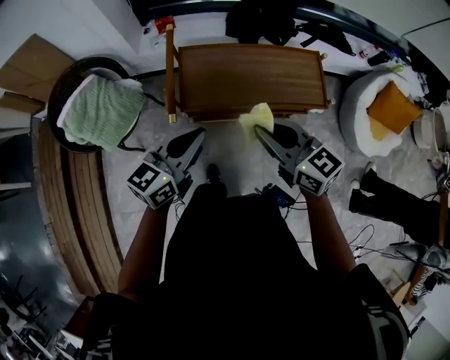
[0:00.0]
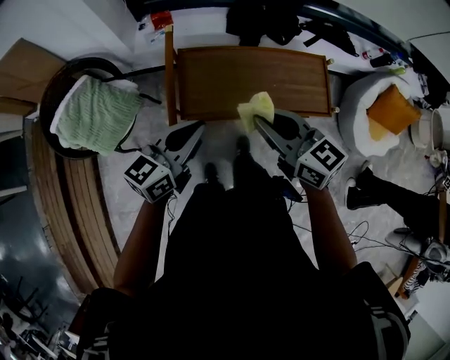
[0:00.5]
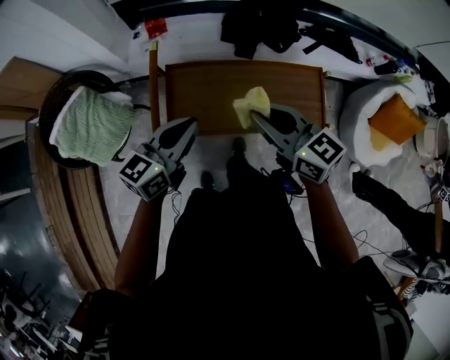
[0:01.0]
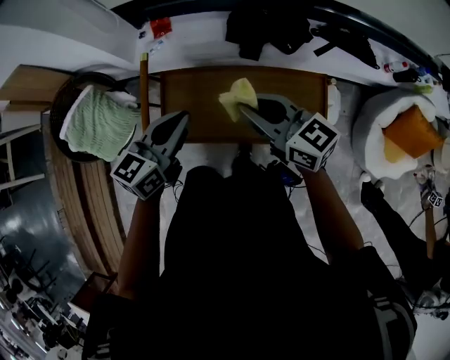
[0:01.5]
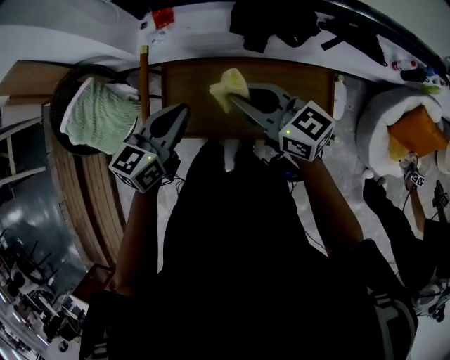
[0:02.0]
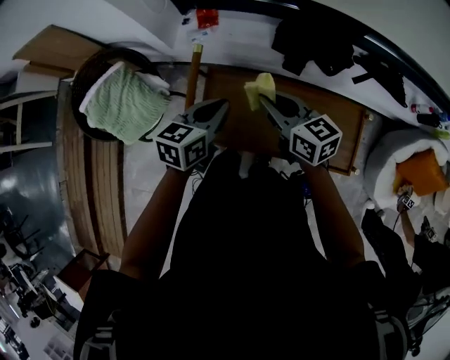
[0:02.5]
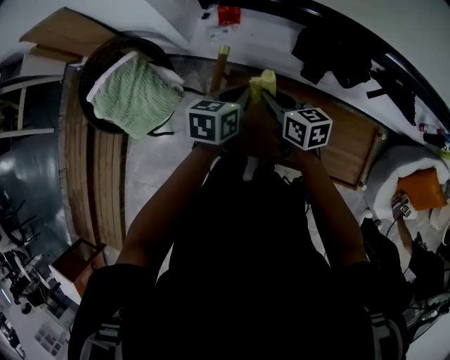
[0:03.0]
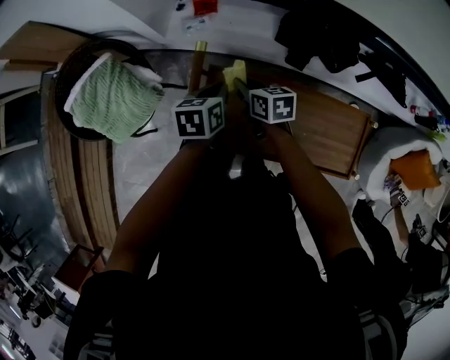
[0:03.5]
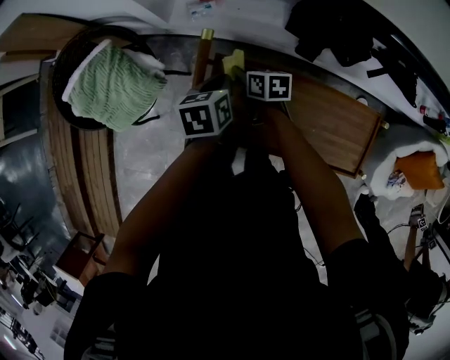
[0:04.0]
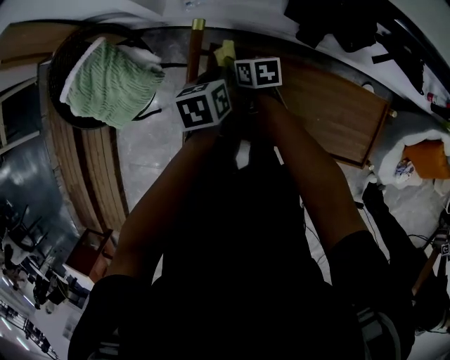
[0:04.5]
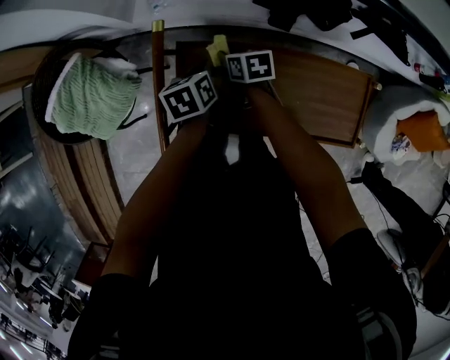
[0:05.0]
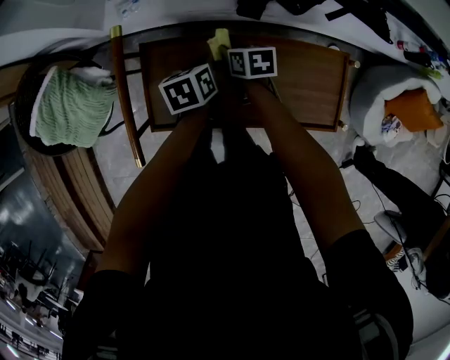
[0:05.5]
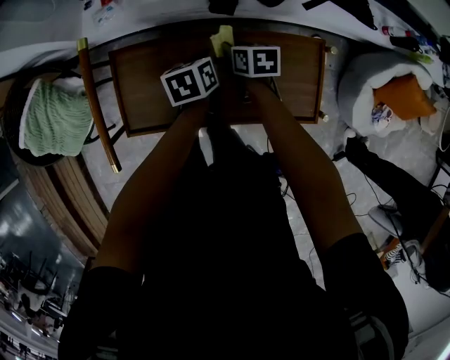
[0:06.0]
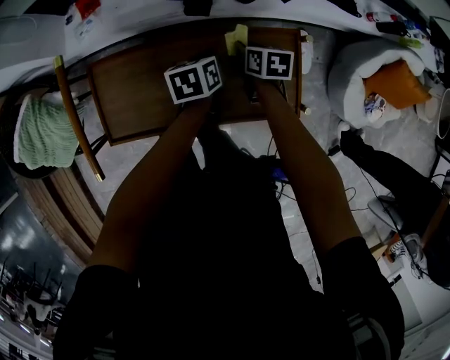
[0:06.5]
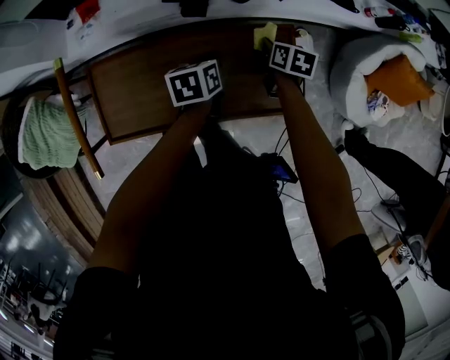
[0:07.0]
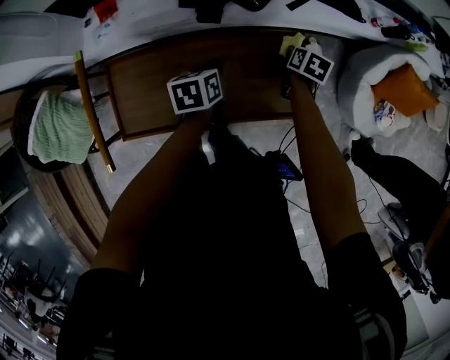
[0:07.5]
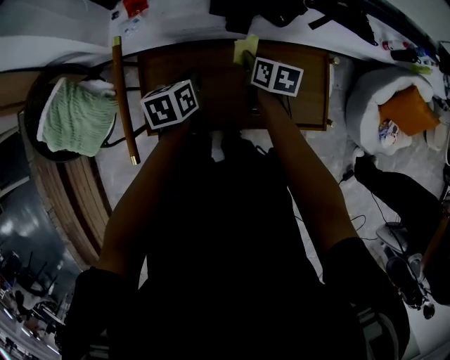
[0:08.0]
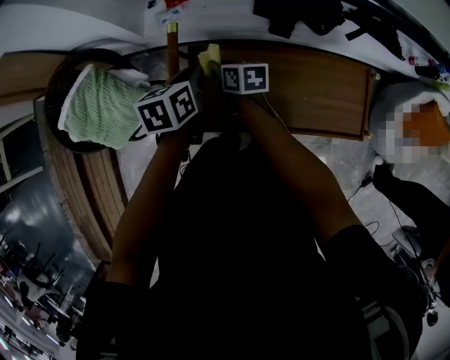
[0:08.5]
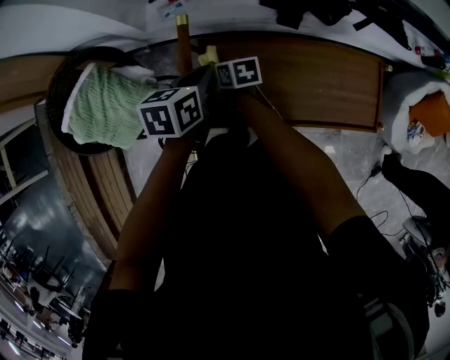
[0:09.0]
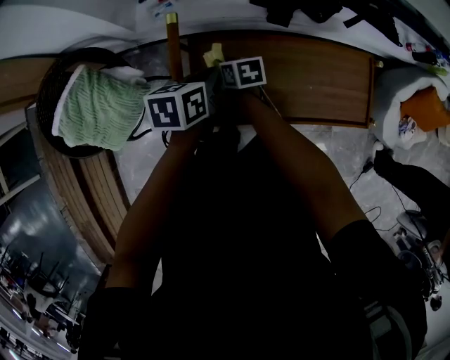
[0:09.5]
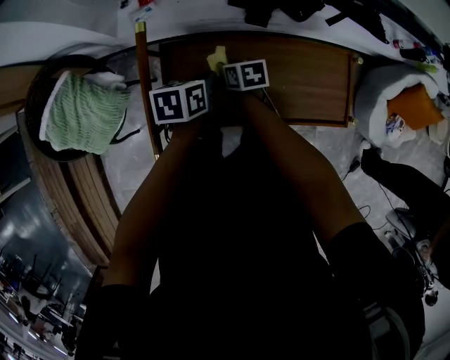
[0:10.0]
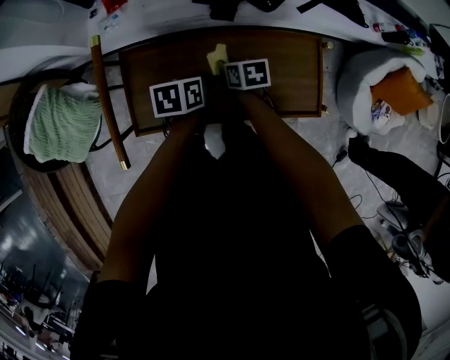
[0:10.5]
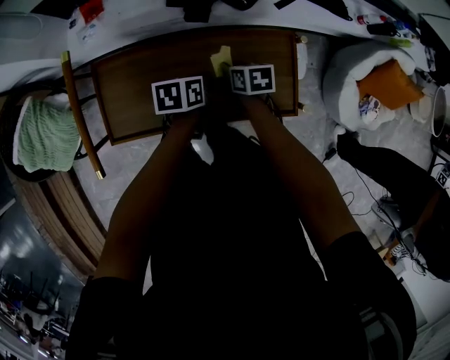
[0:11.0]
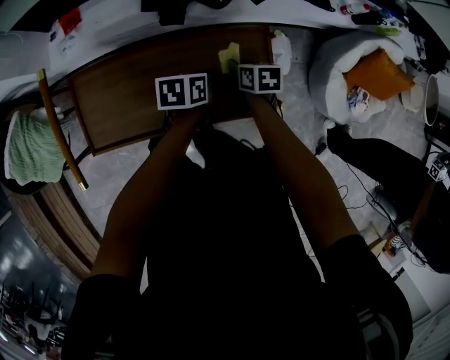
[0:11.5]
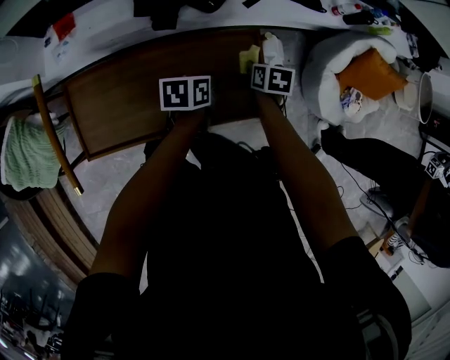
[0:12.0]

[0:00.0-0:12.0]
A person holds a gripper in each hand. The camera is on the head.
0:00.0 to 0:02.0: The two grippers go approximately 20 cm forward.
0:02.0 to 0:04.0: The right gripper travels downward, forward and to the left by about 35 cm, and tilts its fingers about 30 degrees downward; the left gripper moves downward, forward and to the left, some 25 cm, and changes its angle by approximately 40 degrees.
0:04.0 to 0:06.0: The two grippers go about 25 cm to the right.
0:06.0 to 0:08.0: The right gripper moves upward, approximately 10 cm, while the left gripper shifts by roughly 10 cm.
0:08.0 to 0:10.0: The right gripper travels to the left and downward by roughly 20 cm, and swivels approximately 20 degrees. The left gripper reaches about 15 cm to the left, then returns.
0:10.0 to 0:12.0: The left gripper moves roughly 30 cm, while the right gripper ends up approximately 40 cm from where it was, and rotates about 30 degrees.

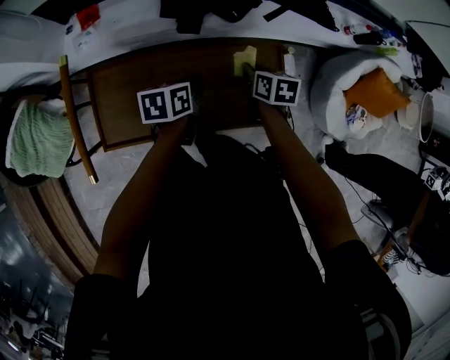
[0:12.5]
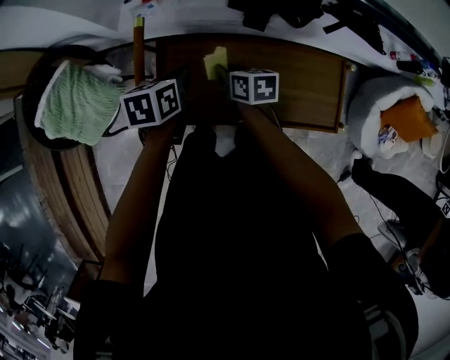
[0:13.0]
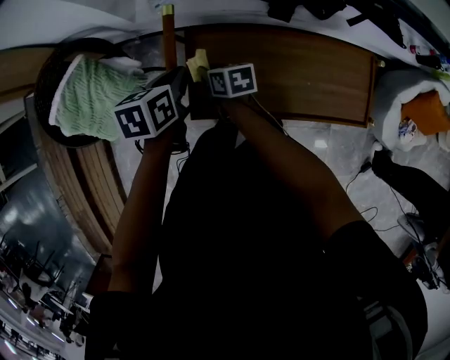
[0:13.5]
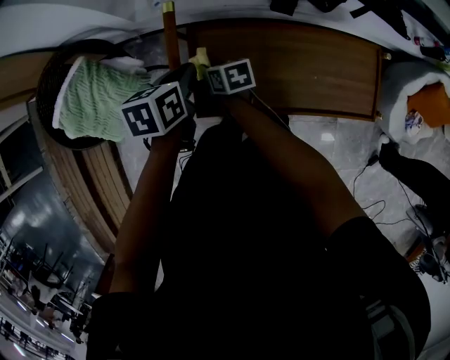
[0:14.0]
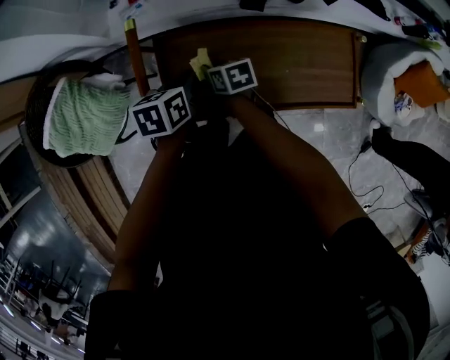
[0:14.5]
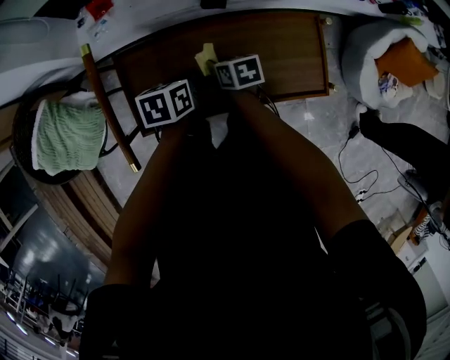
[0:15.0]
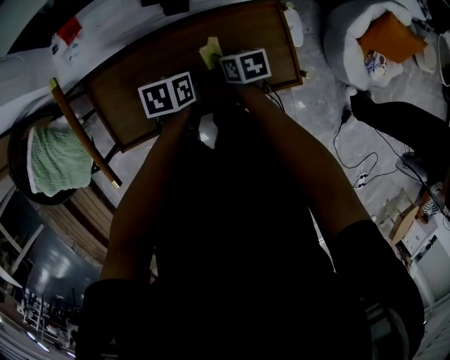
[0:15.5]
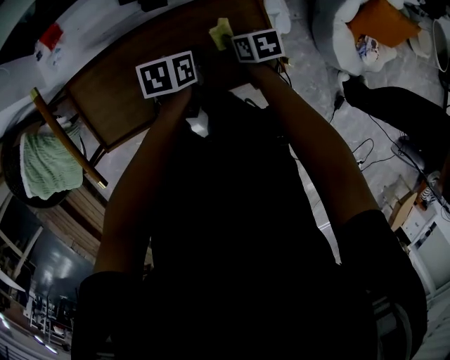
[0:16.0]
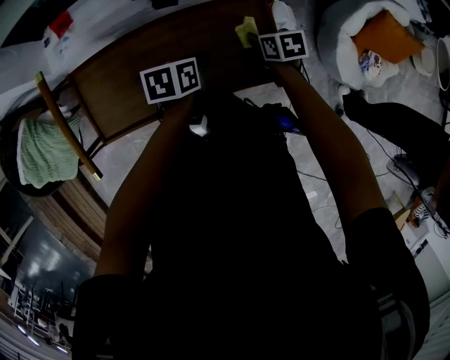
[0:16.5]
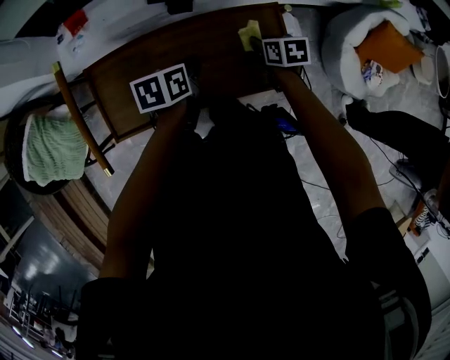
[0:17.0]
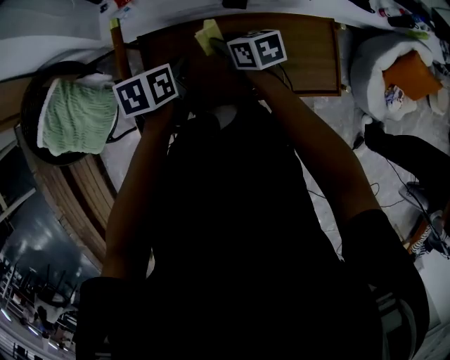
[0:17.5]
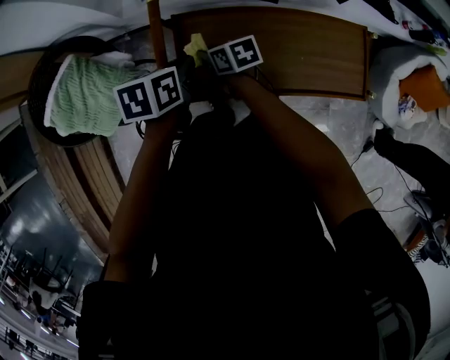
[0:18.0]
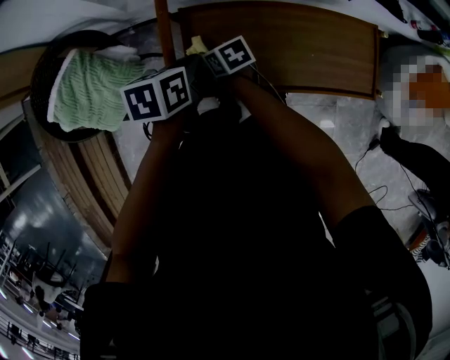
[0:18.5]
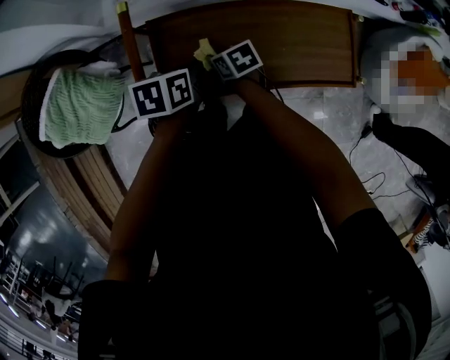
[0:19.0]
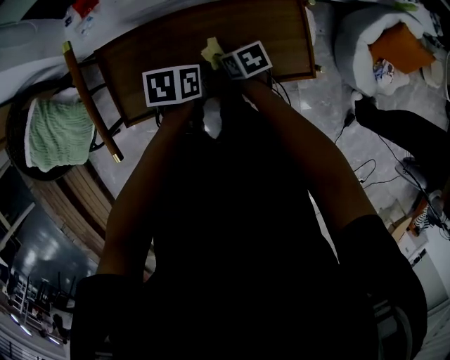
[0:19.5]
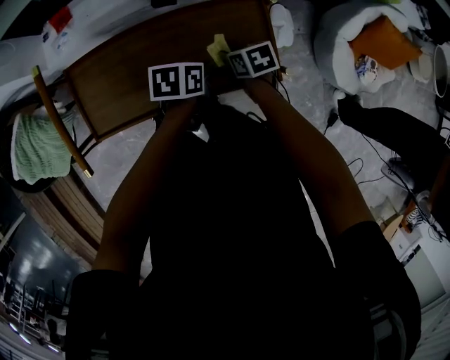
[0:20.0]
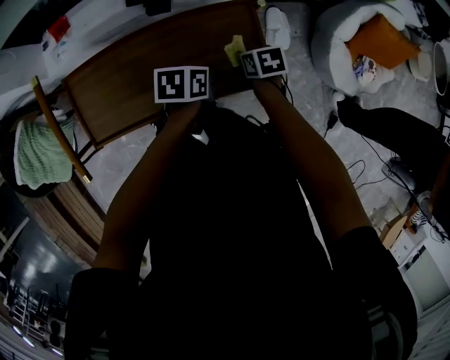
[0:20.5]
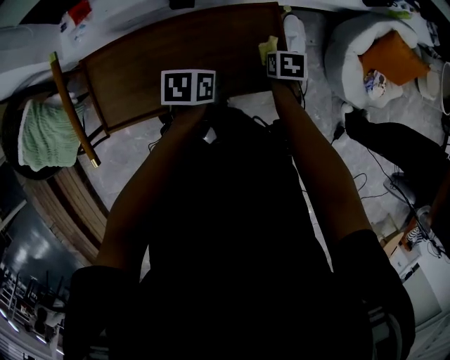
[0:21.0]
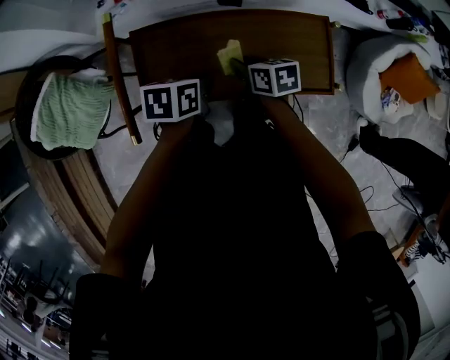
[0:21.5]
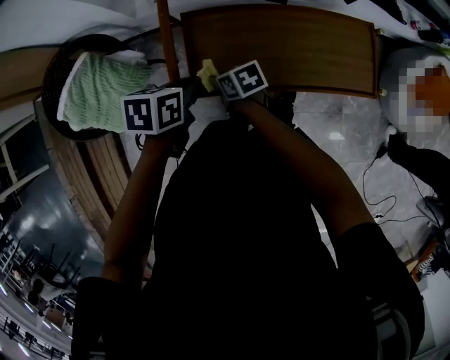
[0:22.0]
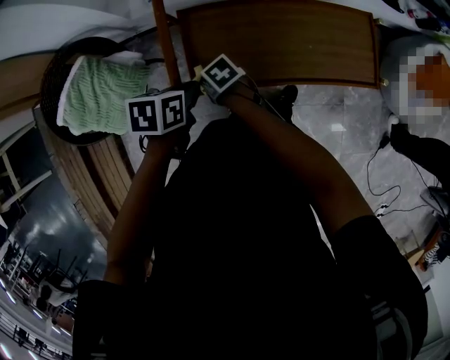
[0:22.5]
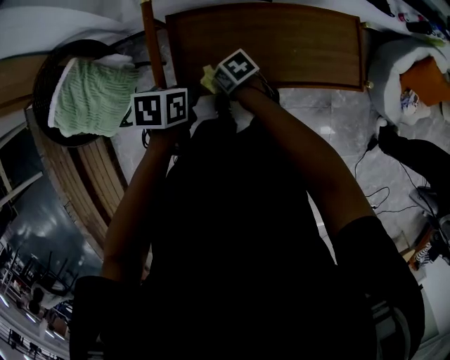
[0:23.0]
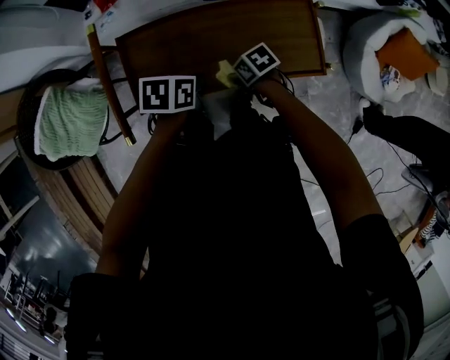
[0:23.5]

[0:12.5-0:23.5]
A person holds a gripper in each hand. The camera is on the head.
0:12.5 to 0:14.5: The right gripper ends up roughly 35 cm from where it was, and changes its angle by some 20 degrees; the left gripper ends up about 25 cm from where it was.
0:14.5 to 0:16.0: Both grippers travel together to the right, about 35 cm.
0:16.0 to 0:18.0: The left gripper ends up some 35 cm from where it was, while the right gripper goes upward and returns, roughly 10 cm each way, and turns by approximately 30 degrees.
0:18.0 to 0:20.0: Both grippers travel together to the right, about 40 cm. The left gripper swivels approximately 20 degrees.
0:20.0 to 0:21.5: The left gripper shifts by about 20 cm. The right gripper changes place by approximately 20 cm.
0:21.5 to 0:23.5: The right gripper travels downward by approximately 10 cm, and swivels about 30 degrees.

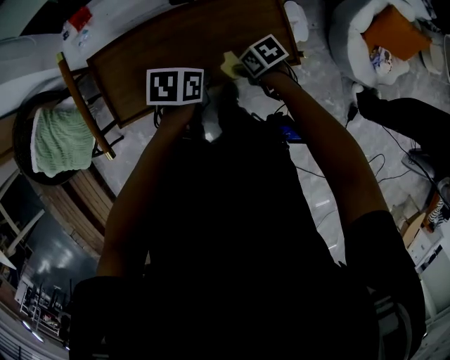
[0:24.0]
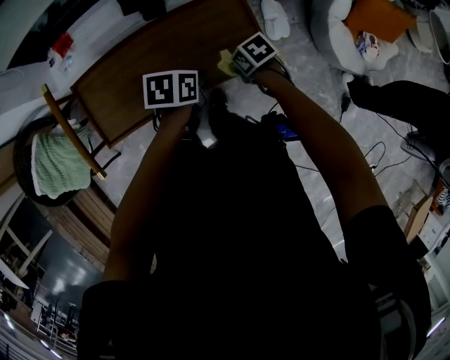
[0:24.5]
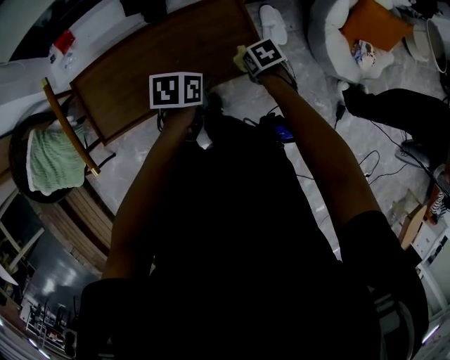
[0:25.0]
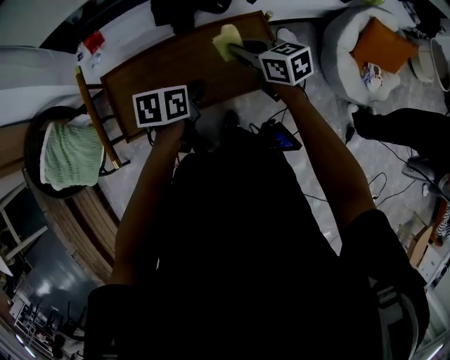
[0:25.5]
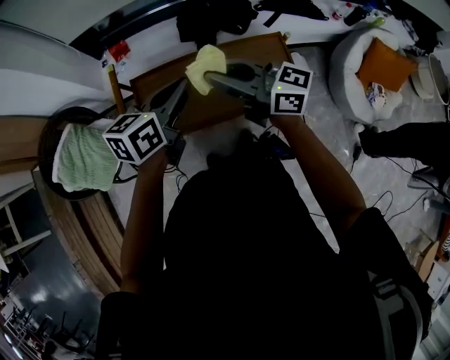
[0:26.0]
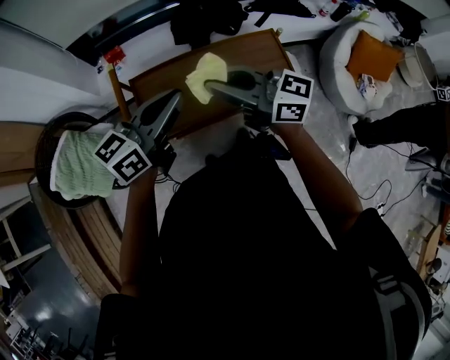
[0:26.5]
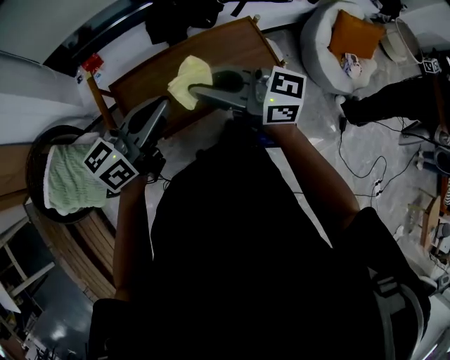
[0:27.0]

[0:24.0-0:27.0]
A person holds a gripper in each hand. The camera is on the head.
0:24.0 to 0:25.5: The left gripper is displaced upward by approximately 5 cm. Meanwhile the right gripper travels upward by roughly 20 cm, and angles its fingers upward, by about 30 degrees.
0:25.5 to 0:27.0: The right gripper travels to the left, upward and backward by some 30 cm, and tips its fingers upward by some 30 degrees. Meanwhile the left gripper heads upward and to the left, covering about 25 cm, and tips its fingers upward by approximately 40 degrees.
